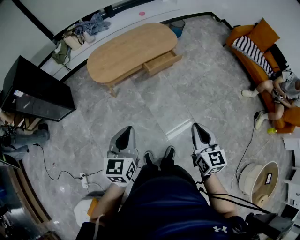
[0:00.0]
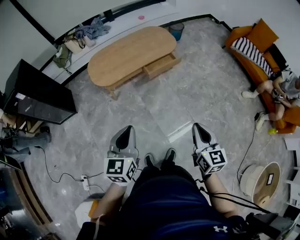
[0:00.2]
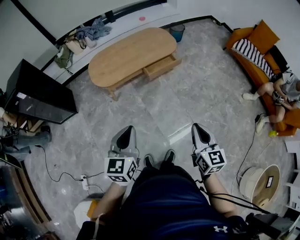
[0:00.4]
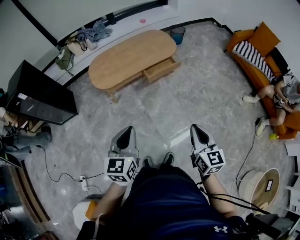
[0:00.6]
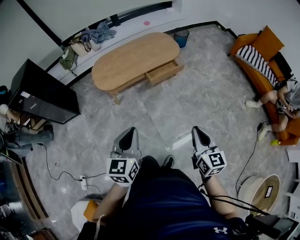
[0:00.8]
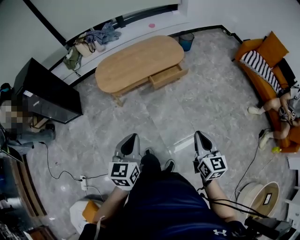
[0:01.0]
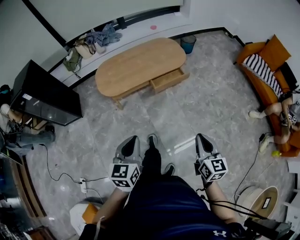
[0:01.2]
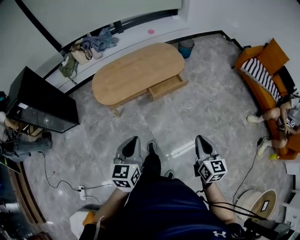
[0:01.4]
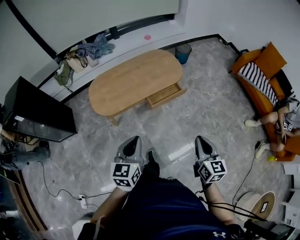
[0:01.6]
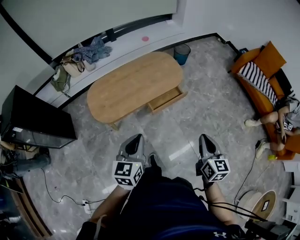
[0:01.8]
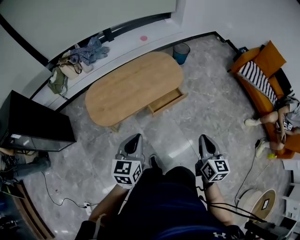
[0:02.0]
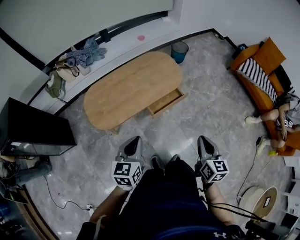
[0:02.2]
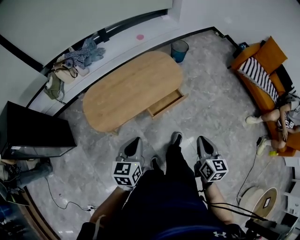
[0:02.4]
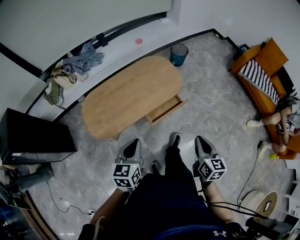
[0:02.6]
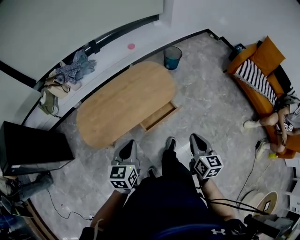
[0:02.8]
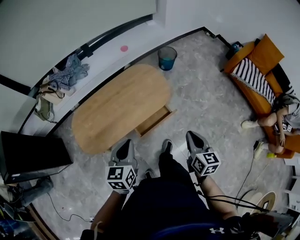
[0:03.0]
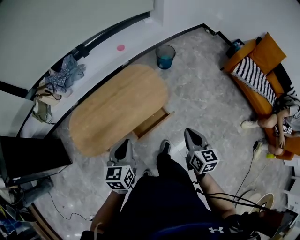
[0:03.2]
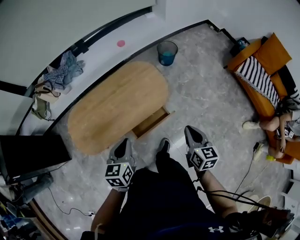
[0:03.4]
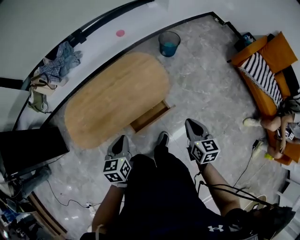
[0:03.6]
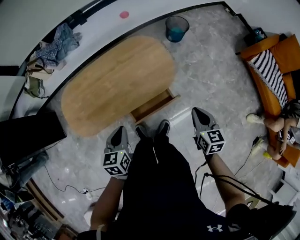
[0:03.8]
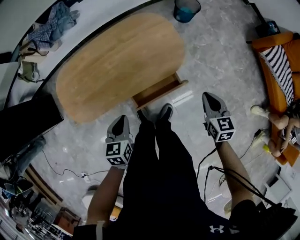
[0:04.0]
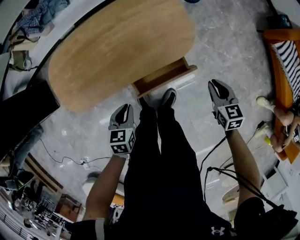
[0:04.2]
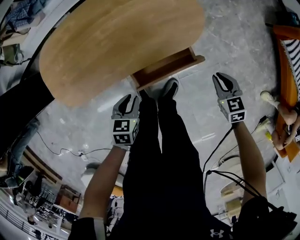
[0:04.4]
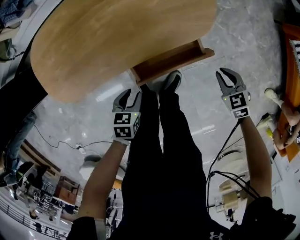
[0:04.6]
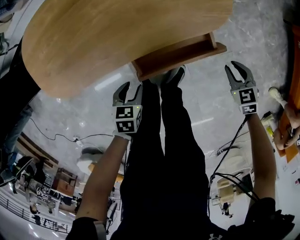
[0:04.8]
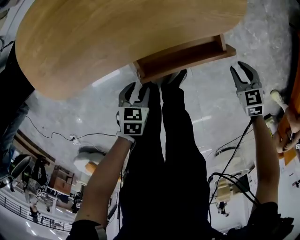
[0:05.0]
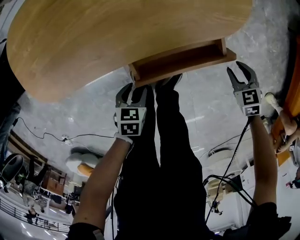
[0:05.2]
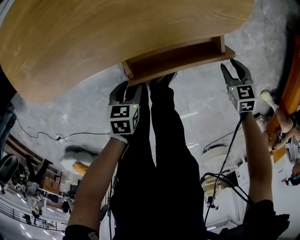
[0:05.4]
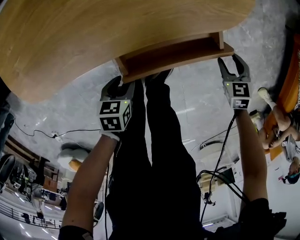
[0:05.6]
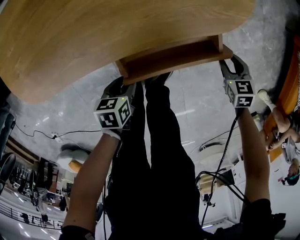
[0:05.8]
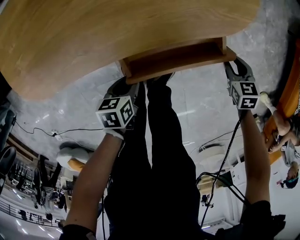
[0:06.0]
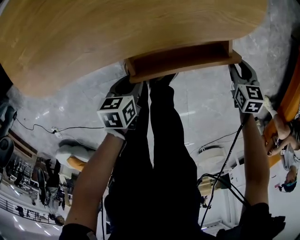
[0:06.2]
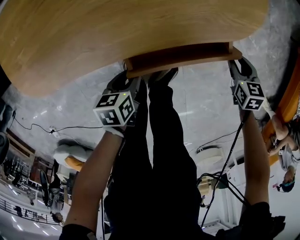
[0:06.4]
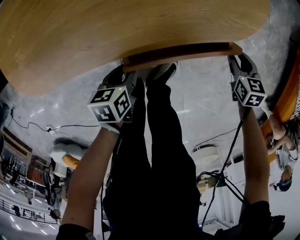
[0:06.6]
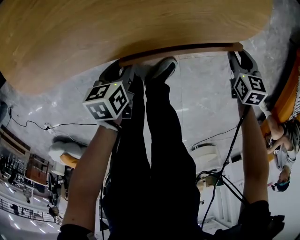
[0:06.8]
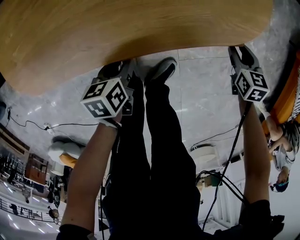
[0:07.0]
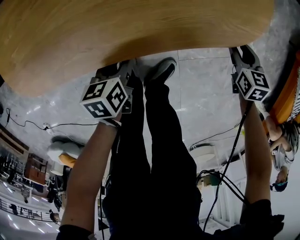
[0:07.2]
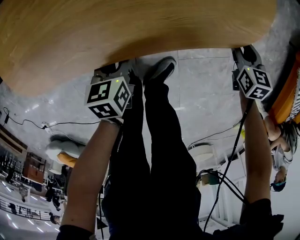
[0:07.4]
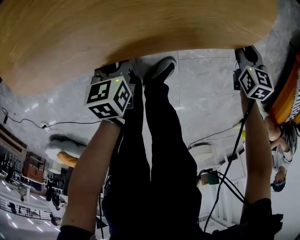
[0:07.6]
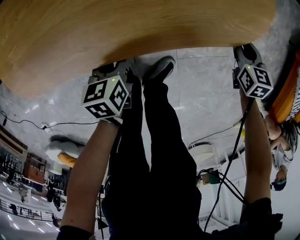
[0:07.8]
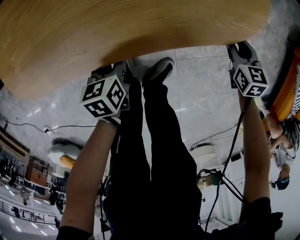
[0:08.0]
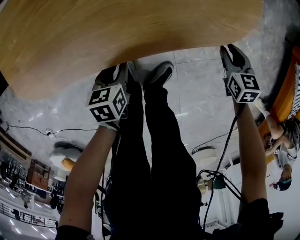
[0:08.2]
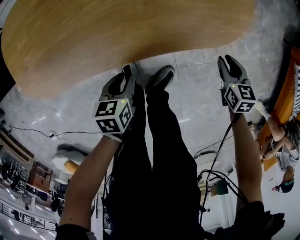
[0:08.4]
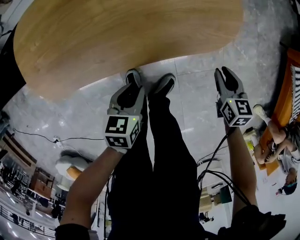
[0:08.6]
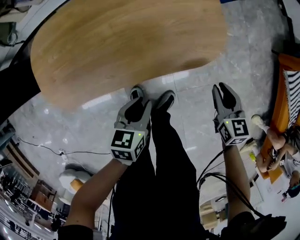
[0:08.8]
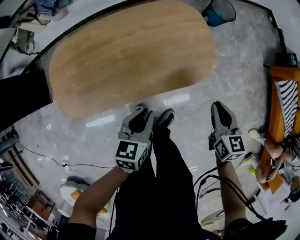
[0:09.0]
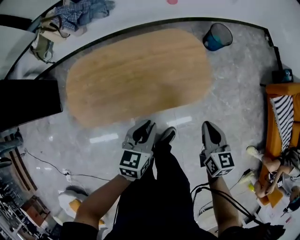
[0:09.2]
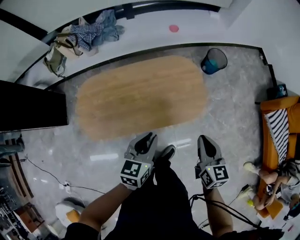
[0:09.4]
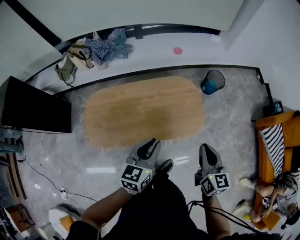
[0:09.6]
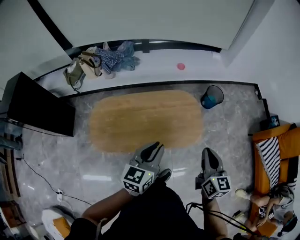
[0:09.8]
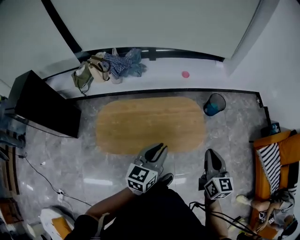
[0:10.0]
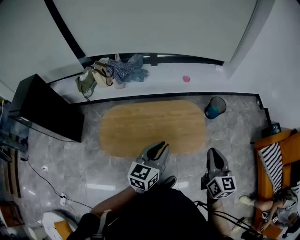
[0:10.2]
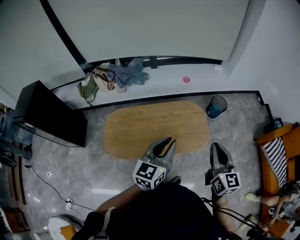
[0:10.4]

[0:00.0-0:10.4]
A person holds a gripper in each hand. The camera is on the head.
0:00.0 to 0:01.4: The left gripper goes roughly 10 cm forward. Meanwhile the right gripper heads forward and to the right, covering some 15 cm.
0:01.4 to 0:03.0: The grippers both shift forward by about 40 cm.
0:03.0 to 0:04.4: The left gripper is displaced downward by some 40 cm, changes its angle by roughly 30 degrees, and opens its fingers; the right gripper is displaced downward and forward by some 40 cm, and changes its angle by about 50 degrees.
0:04.4 to 0:06.0: The two grippers go some 20 cm downward. The left gripper turns by about 30 degrees. The right gripper opens its fingers.
0:06.0 to 0:07.4: The grippers both shift forward and to the left by approximately 15 cm.
0:07.4 to 0:09.0: Both grippers move upward, some 30 cm. The left gripper changes its angle by approximately 30 degrees. Meanwhile the right gripper turns by roughly 20 degrees, and closes up.
0:09.0 to 0:10.4: The grippers both shift upward by roughly 40 cm. The right gripper tips its fingers upward by roughly 30 degrees, while the left gripper tilts its fingers some 30 degrees upward.

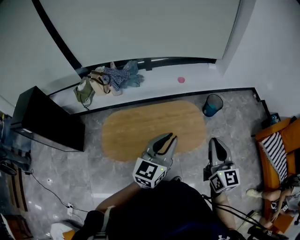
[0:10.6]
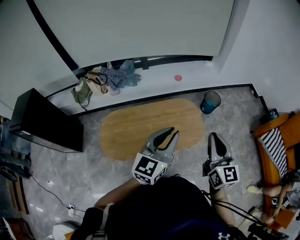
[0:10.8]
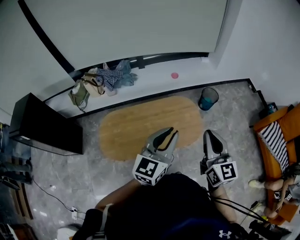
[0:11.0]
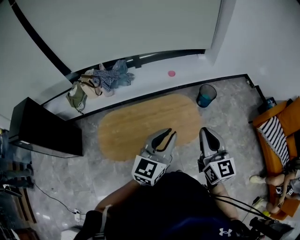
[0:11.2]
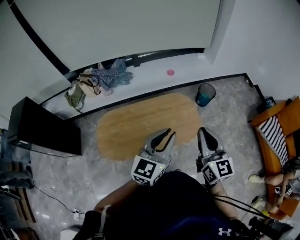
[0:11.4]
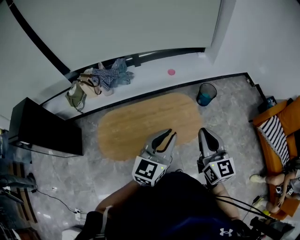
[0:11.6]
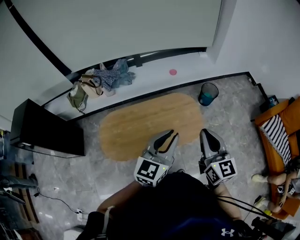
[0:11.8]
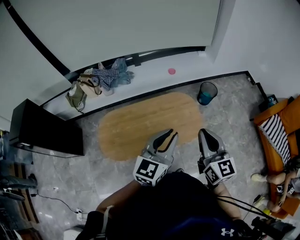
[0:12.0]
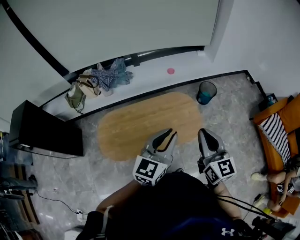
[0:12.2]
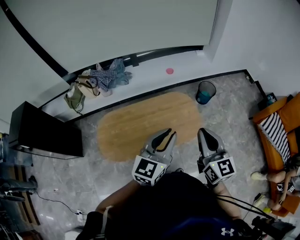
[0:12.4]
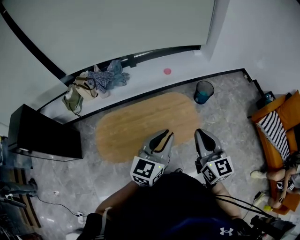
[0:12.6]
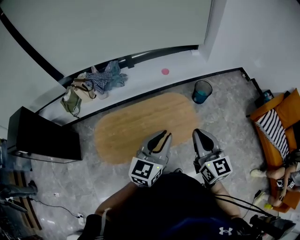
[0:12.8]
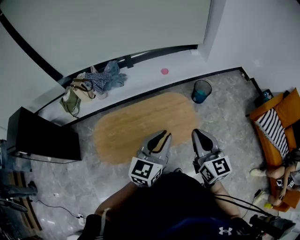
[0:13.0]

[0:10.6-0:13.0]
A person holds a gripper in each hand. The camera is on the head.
0:10.6 to 0:13.0: The grippers make only small movements.

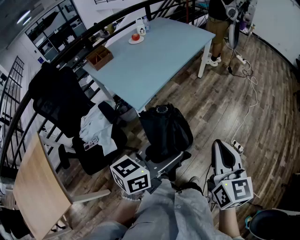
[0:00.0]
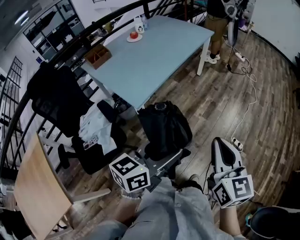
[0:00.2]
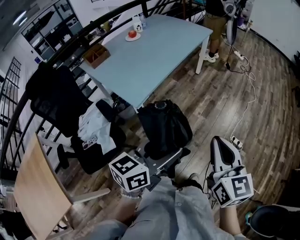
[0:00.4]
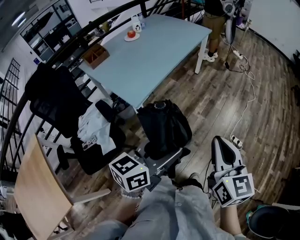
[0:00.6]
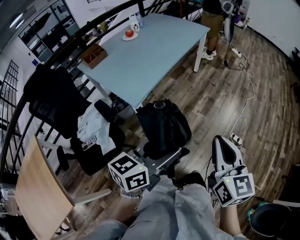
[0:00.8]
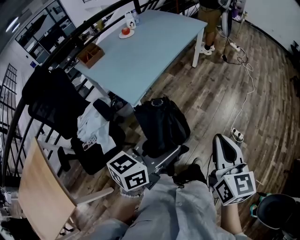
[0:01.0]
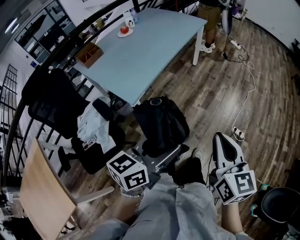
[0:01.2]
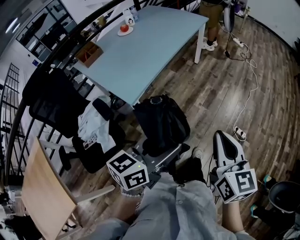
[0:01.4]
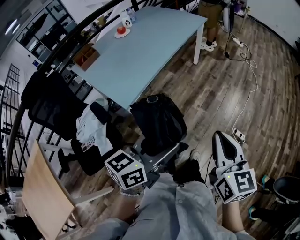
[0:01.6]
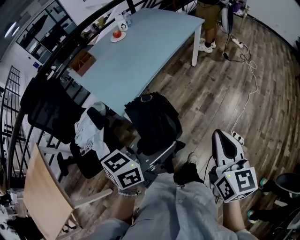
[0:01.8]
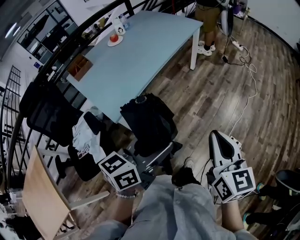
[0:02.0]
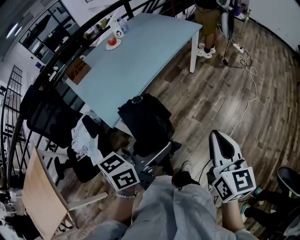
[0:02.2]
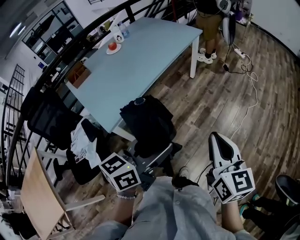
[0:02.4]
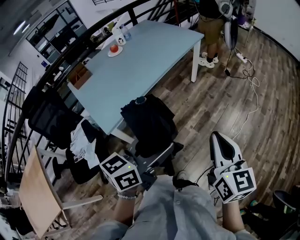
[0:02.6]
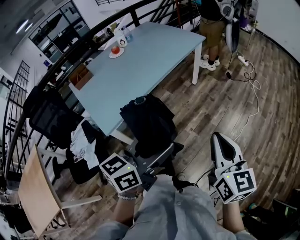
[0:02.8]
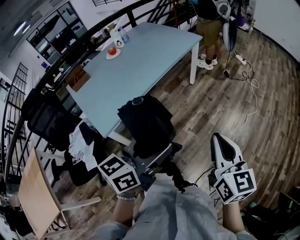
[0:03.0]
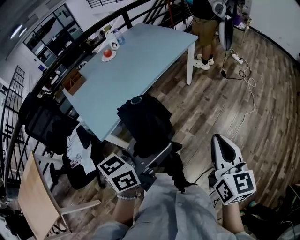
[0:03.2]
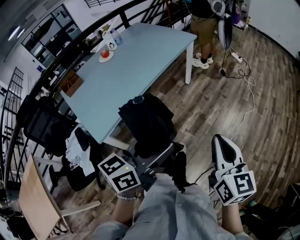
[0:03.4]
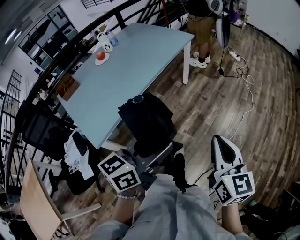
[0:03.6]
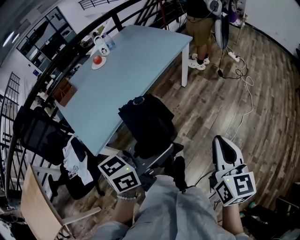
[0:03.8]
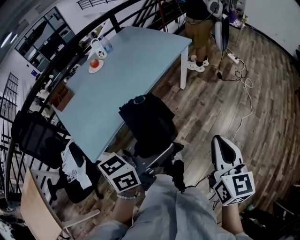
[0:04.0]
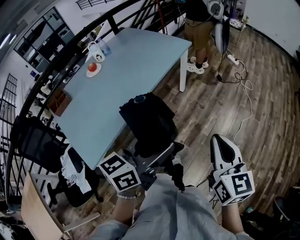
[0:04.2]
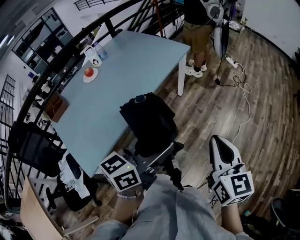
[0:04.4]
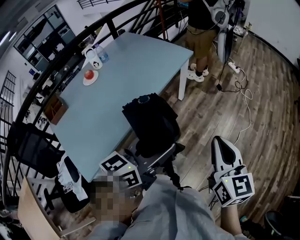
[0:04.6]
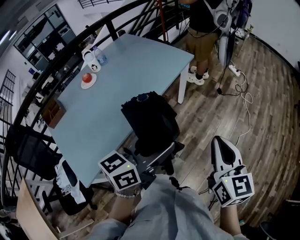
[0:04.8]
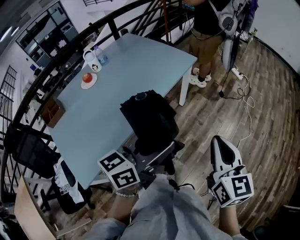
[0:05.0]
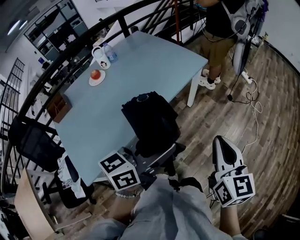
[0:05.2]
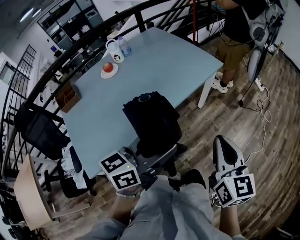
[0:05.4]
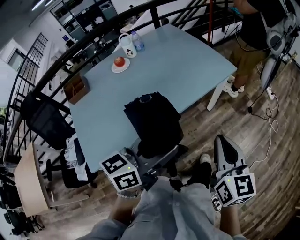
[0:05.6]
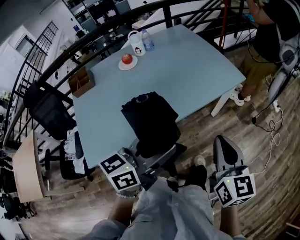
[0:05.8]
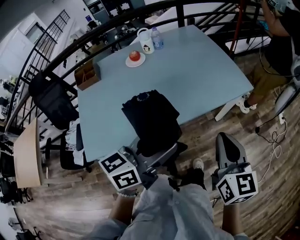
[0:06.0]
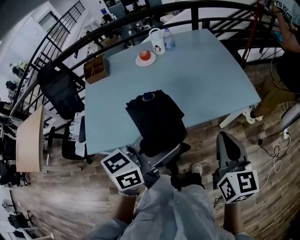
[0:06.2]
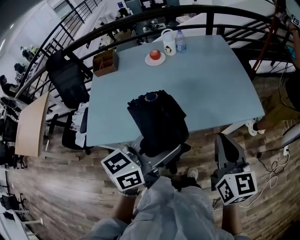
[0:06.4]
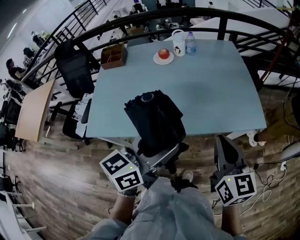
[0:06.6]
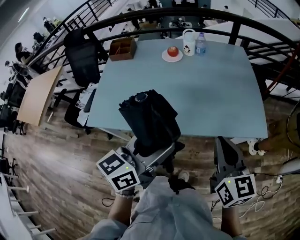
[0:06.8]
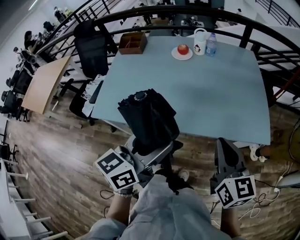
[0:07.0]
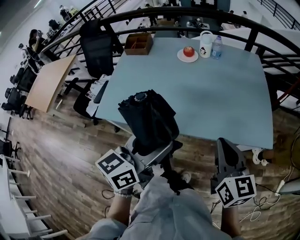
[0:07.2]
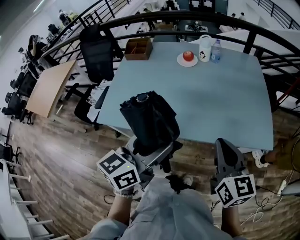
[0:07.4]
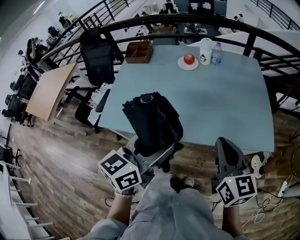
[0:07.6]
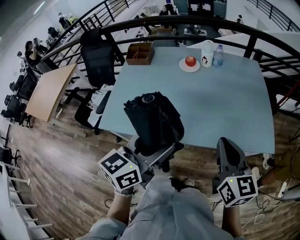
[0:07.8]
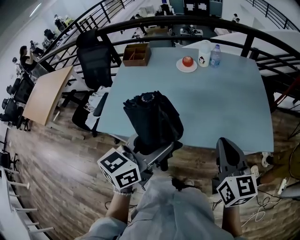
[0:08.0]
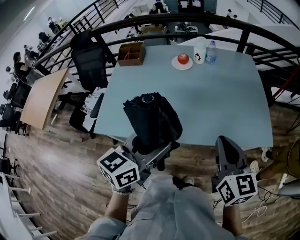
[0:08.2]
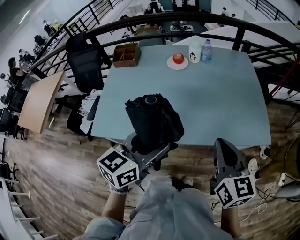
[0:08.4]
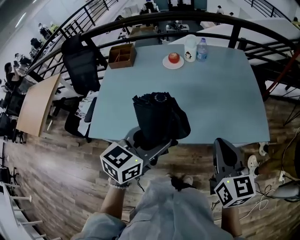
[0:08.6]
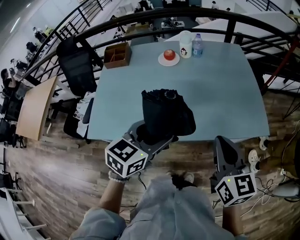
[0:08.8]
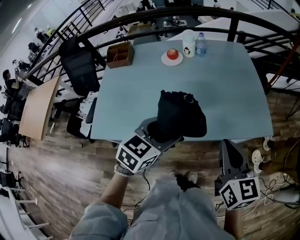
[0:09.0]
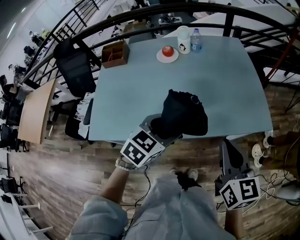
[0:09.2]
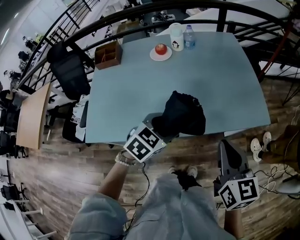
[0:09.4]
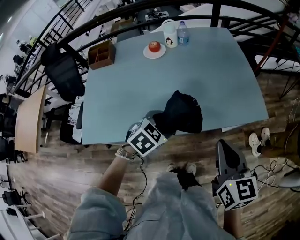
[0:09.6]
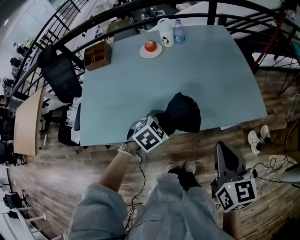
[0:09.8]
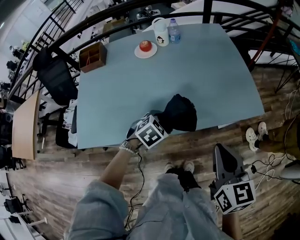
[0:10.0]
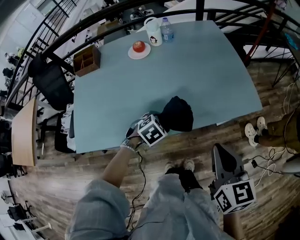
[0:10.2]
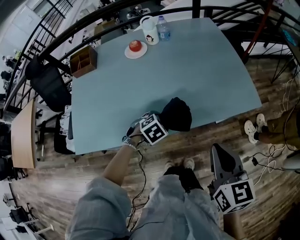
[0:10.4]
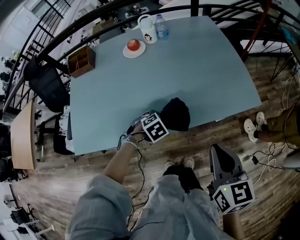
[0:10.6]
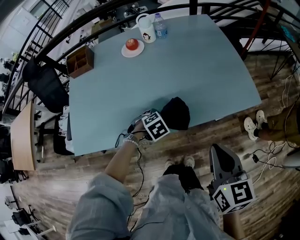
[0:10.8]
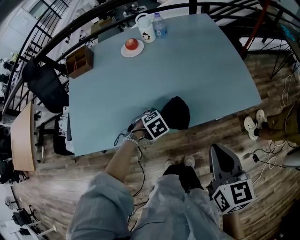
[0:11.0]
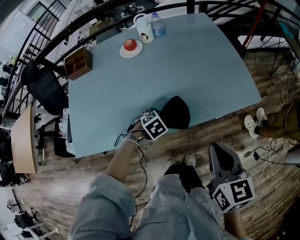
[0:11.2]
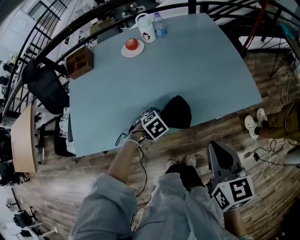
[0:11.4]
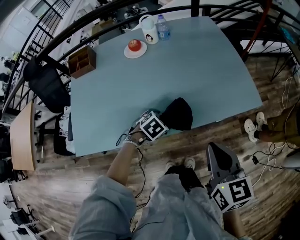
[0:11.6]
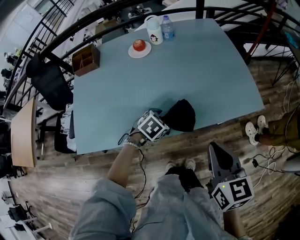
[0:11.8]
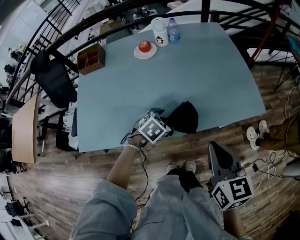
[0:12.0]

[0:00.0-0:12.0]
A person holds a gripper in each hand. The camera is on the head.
0:00.0 to 0:01.6: Both grippers travel together forward, approximately 5 cm.
0:01.6 to 0:03.0: Both grippers travel together forward and to the right, some 20 cm.
0:03.0 to 0:04.4: Both grippers move forward, some 20 cm.
0:04.4 to 0:06.0: The left gripper changes place by approximately 20 cm, and turns by roughly 30 degrees; the right gripper changes place by approximately 30 cm, and changes its angle by about 30 degrees.
0:06.0 to 0:07.6: The left gripper ends up approximately 5 cm from where it was, and turns by about 40 degrees. The right gripper moves approximately 10 cm, and turns by about 30 degrees.
0:07.6 to 0:09.0: The left gripper moves downward and forward, about 10 cm, and turns by roughly 30 degrees.
0:09.0 to 0:10.4: The right gripper ends up roughly 5 cm from where it was. The left gripper moves downward, approximately 25 cm, and tips its fingers downward by about 40 degrees.
0:10.4 to 0:12.0: There are only small adjustments of the grippers.
